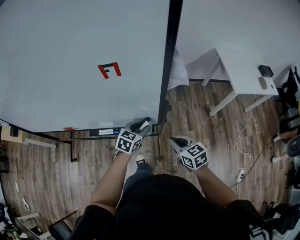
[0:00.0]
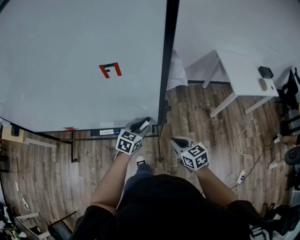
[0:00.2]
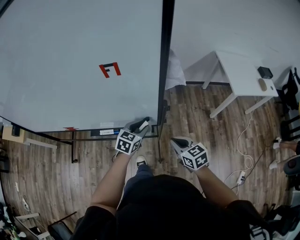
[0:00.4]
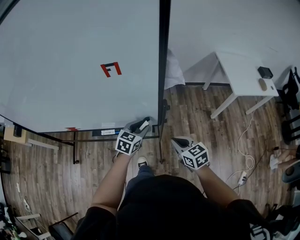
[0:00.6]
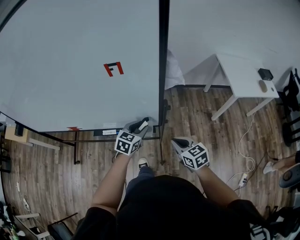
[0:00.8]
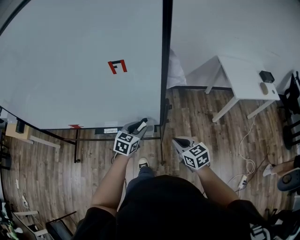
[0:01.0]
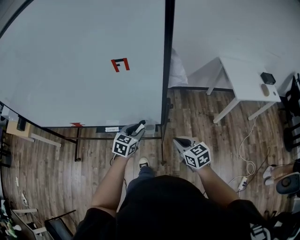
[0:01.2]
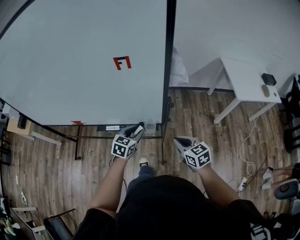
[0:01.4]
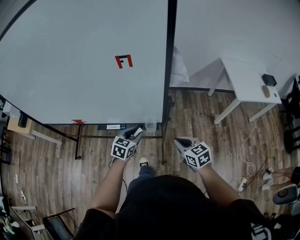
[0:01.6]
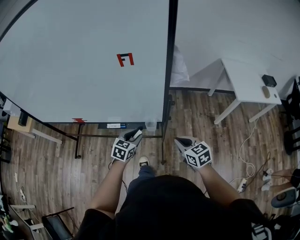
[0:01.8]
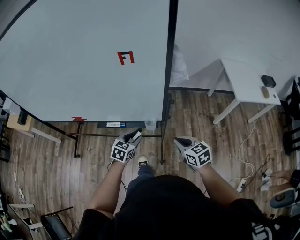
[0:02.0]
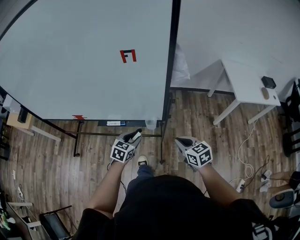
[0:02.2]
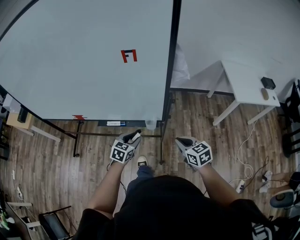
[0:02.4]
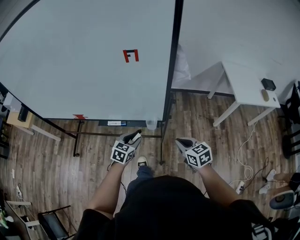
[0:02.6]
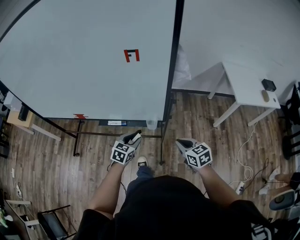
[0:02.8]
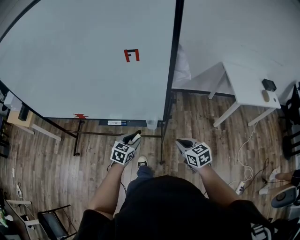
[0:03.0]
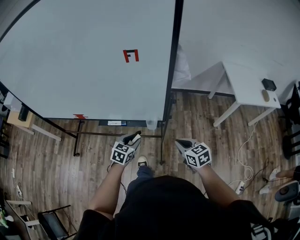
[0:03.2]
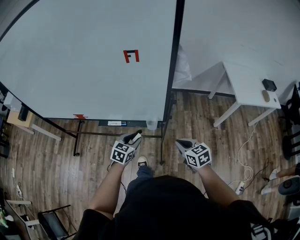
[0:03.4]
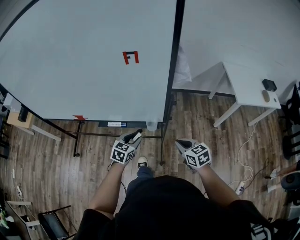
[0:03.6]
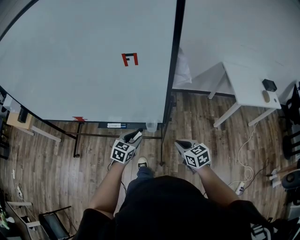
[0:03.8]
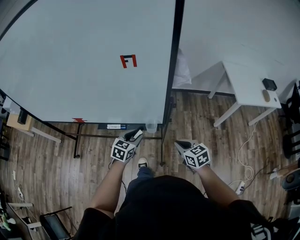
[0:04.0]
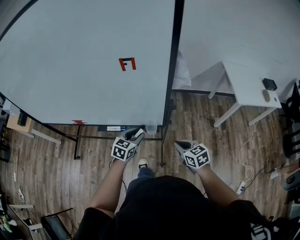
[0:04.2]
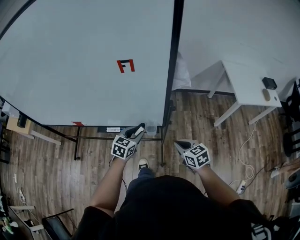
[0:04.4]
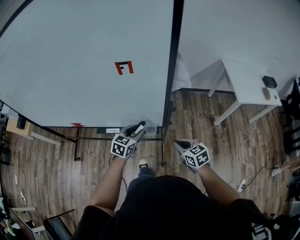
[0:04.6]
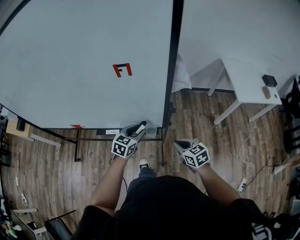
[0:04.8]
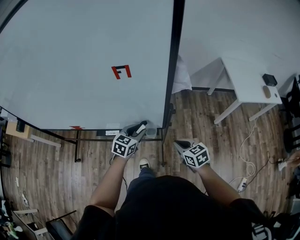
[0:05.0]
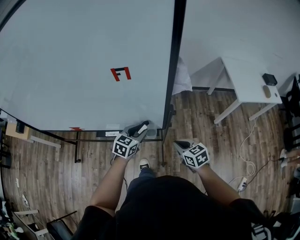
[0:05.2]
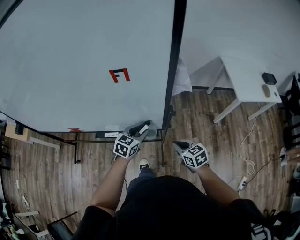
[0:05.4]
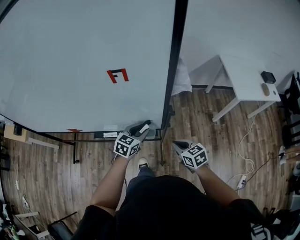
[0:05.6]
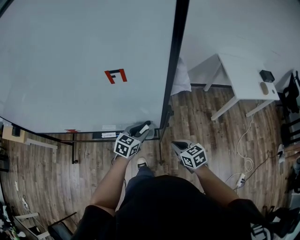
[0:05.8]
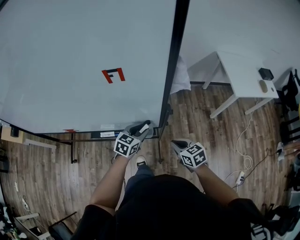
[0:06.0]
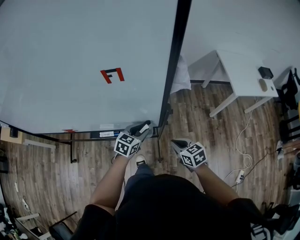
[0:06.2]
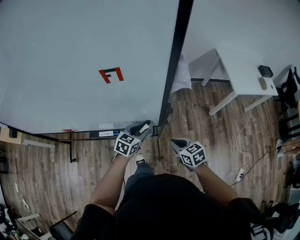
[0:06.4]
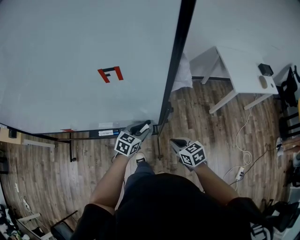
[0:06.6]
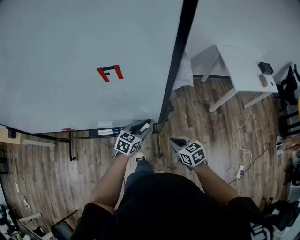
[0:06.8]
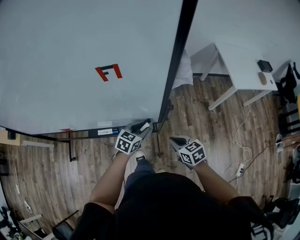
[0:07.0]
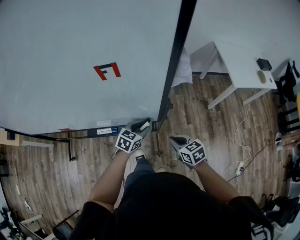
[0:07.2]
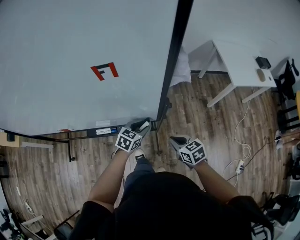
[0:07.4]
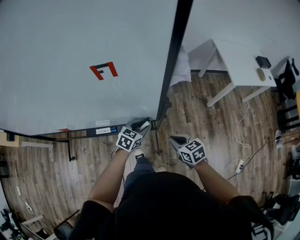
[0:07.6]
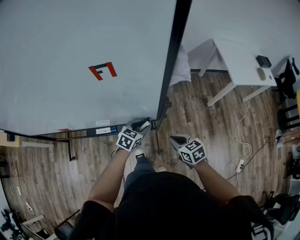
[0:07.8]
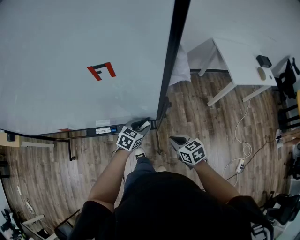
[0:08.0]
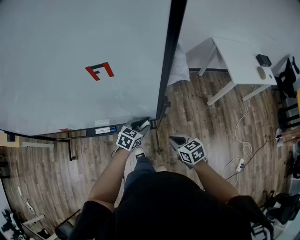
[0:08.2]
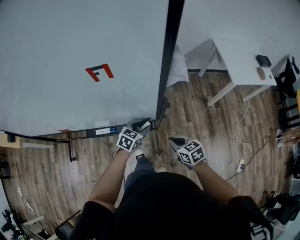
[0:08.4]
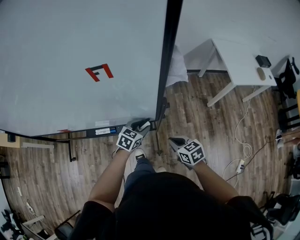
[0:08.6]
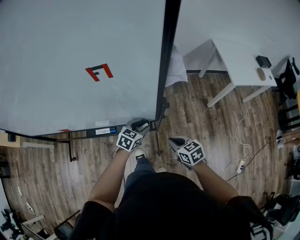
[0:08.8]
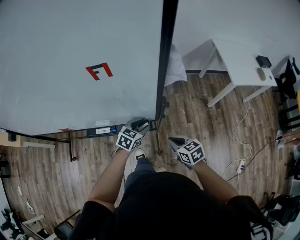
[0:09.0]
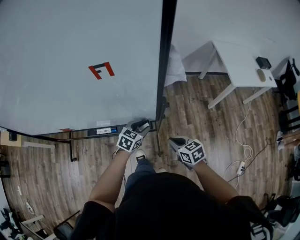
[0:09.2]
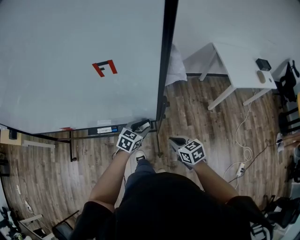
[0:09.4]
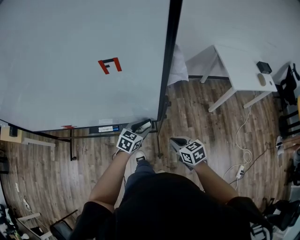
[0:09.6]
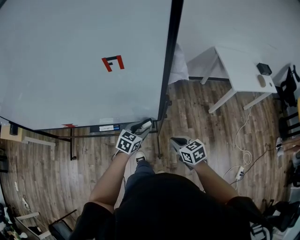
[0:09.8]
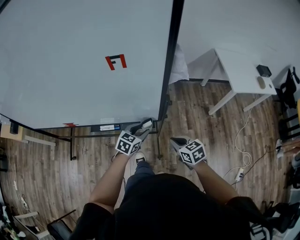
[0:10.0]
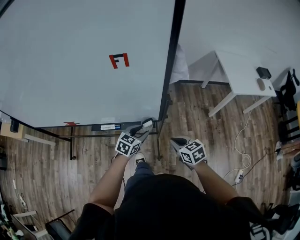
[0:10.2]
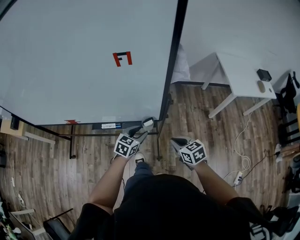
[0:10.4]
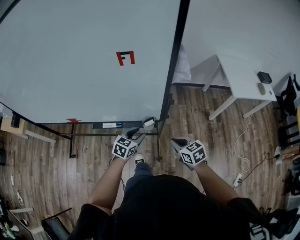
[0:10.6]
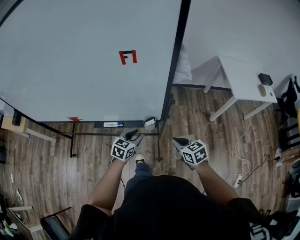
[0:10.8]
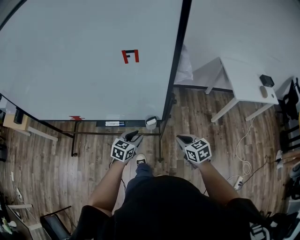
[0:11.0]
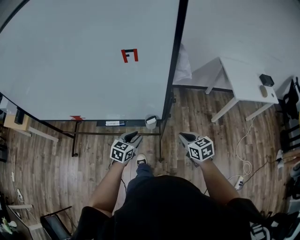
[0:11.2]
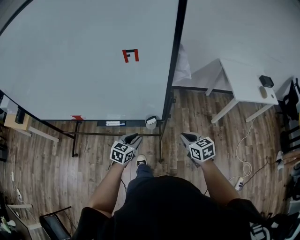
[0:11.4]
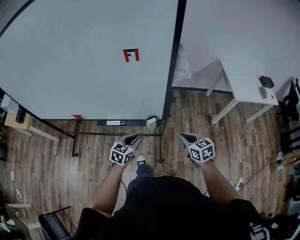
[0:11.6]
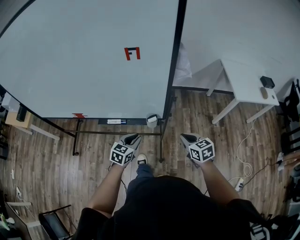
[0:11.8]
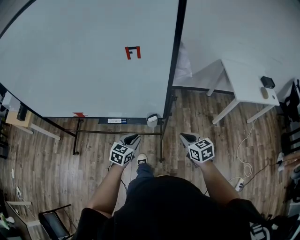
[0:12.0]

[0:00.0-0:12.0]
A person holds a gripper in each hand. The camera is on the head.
0:00.0 to 0:01.6: The left gripper travels backward and to the left by some 10 cm.
0:01.6 to 0:03.0: The left gripper goes approximately 5 cm backward.
0:03.0 to 0:04.4: The left gripper shifts approximately 5 cm forward.
0:04.4 to 0:06.0: The left gripper shifts by roughly 5 cm.
0:06.0 to 0:07.6: The left gripper is displaced downward by roughly 5 cm.
0:07.6 to 0:09.0: Both grippers stay about where they are.
0:09.0 to 0:10.4: The left gripper moves backward, approximately 5 cm.
0:10.4 to 0:12.0: The left gripper shifts some 5 cm backward, and closes its fingers, while the right gripper moves about 5 cm.

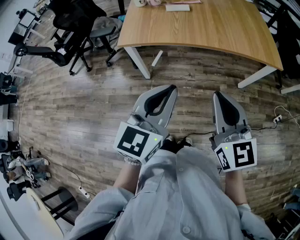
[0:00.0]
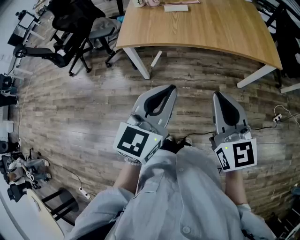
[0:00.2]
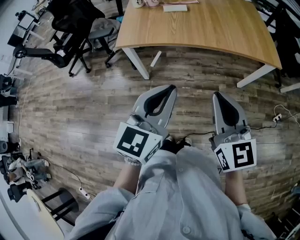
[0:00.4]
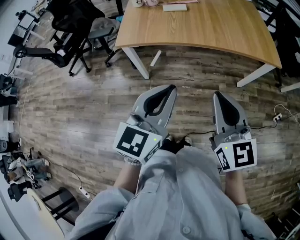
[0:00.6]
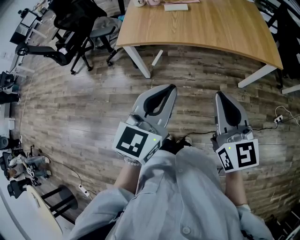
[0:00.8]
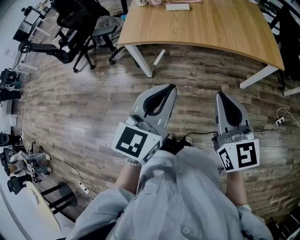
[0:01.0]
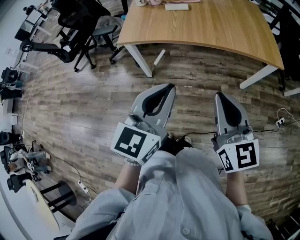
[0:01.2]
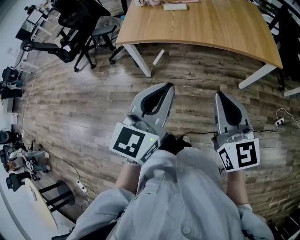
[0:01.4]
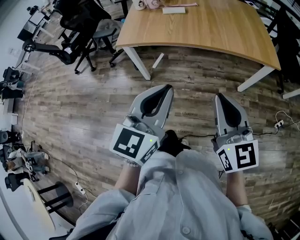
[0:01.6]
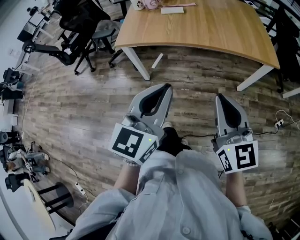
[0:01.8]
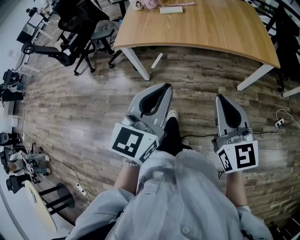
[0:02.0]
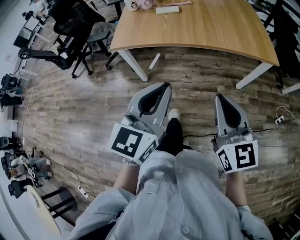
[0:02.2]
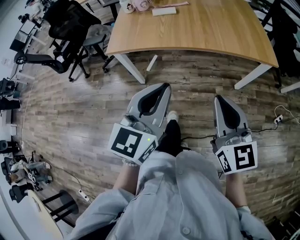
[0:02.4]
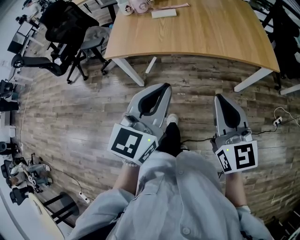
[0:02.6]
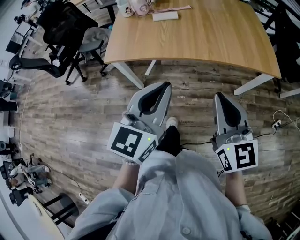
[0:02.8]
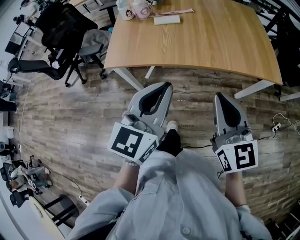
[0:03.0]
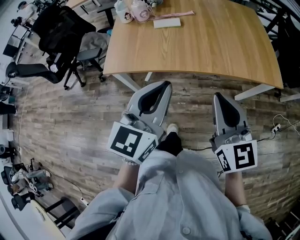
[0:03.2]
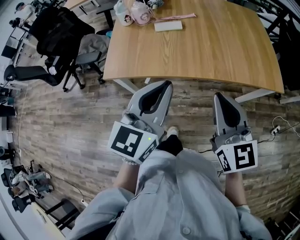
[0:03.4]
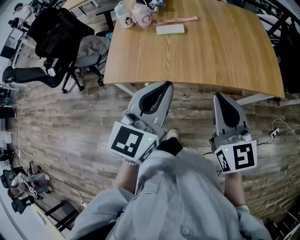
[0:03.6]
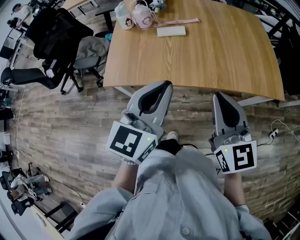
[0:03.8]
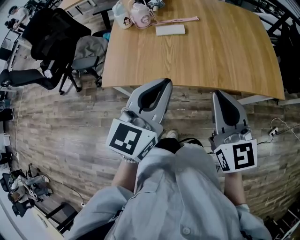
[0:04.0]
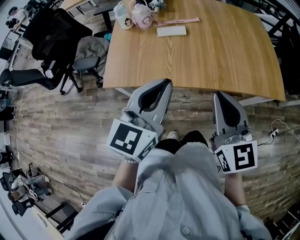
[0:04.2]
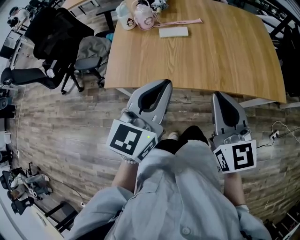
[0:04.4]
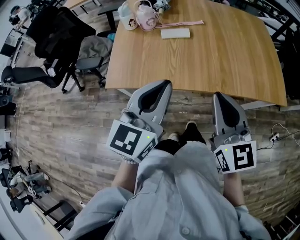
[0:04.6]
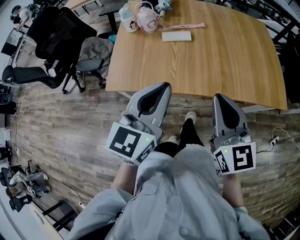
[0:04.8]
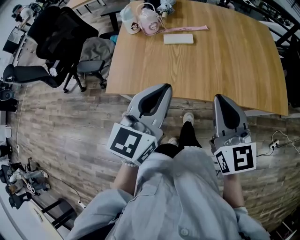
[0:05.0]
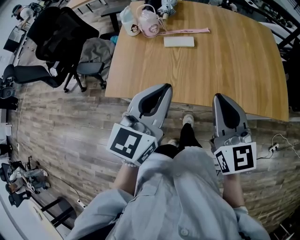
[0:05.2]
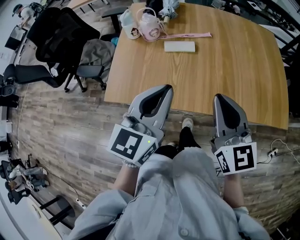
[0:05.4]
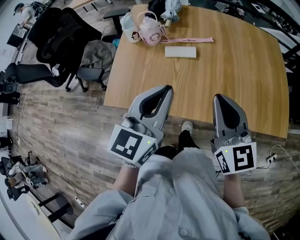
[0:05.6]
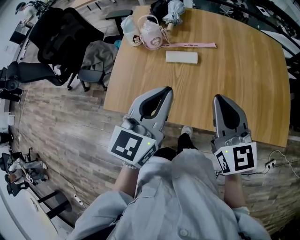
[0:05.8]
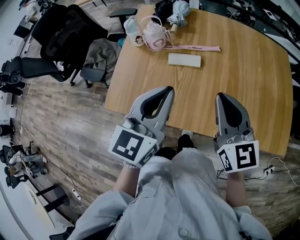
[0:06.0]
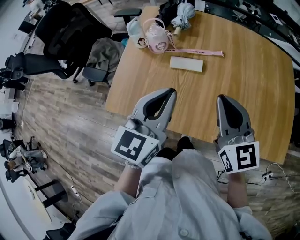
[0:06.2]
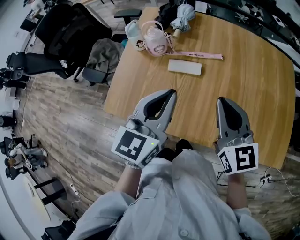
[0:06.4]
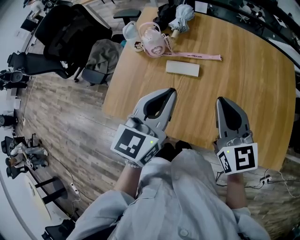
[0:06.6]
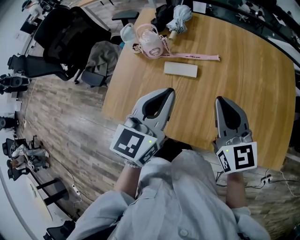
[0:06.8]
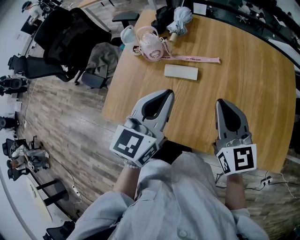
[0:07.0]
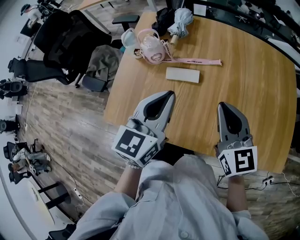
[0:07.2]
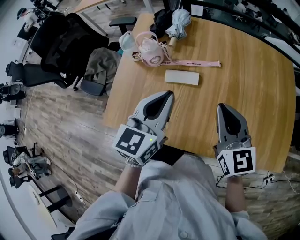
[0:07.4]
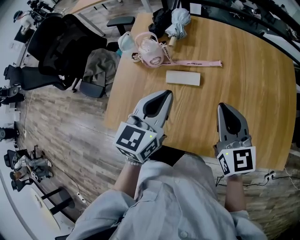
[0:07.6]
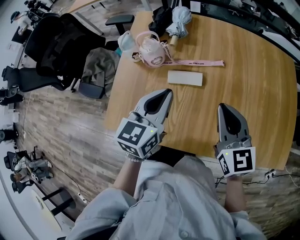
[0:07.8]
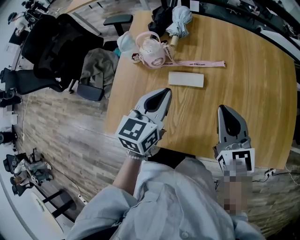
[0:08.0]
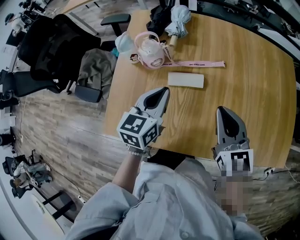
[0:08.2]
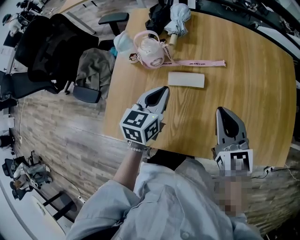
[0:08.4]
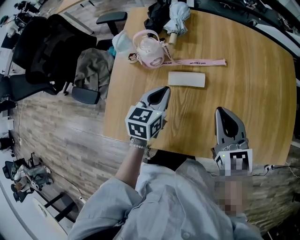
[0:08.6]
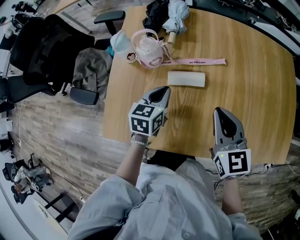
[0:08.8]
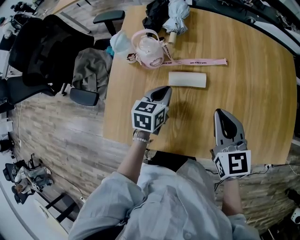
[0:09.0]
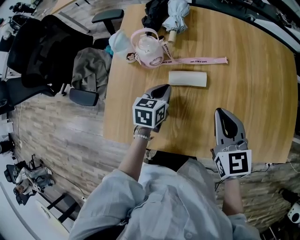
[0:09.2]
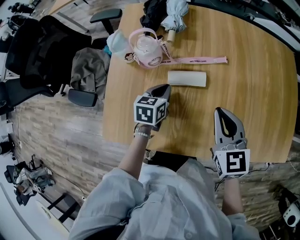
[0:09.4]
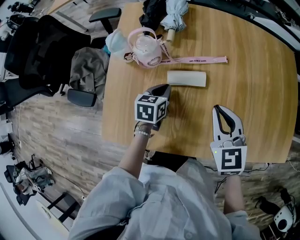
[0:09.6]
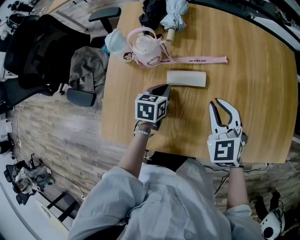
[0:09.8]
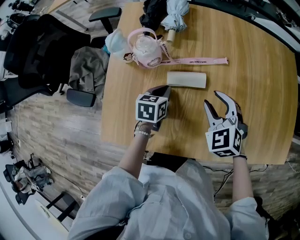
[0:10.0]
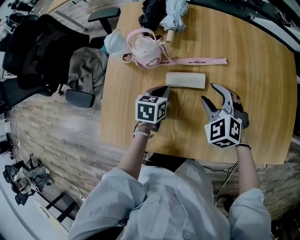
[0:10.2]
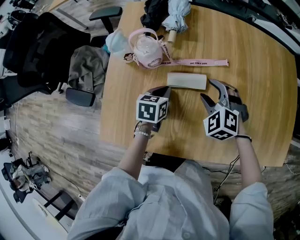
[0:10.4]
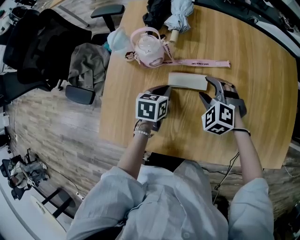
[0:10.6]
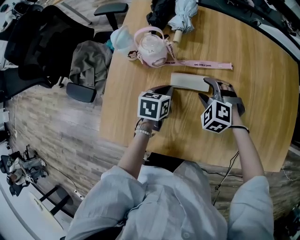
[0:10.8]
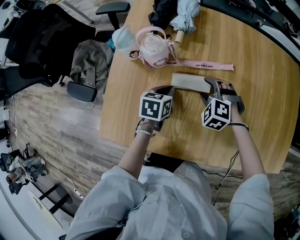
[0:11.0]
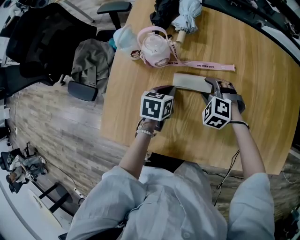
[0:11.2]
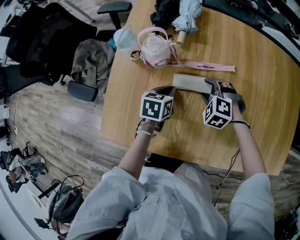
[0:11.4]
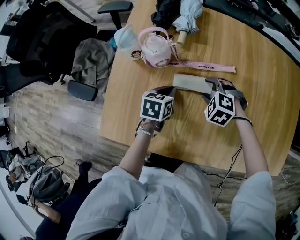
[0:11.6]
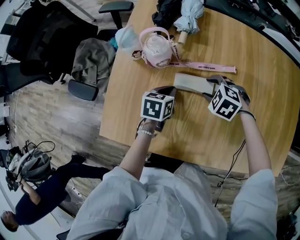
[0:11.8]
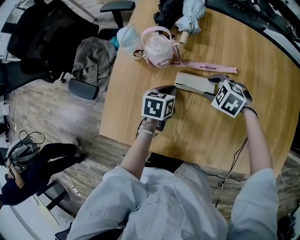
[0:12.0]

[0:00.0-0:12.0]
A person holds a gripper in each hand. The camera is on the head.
0:00.0 to 0:01.6: The two grippers go some 10 cm to the right.
0:01.6 to 0:03.0: Both grippers move forward, approximately 20 cm.
0:03.0 to 0:04.4: Both grippers move forward and to the left, approximately 15 cm.
0:04.4 to 0:06.0: The grippers both shift forward by some 20 cm.
0:06.0 to 0:07.6: Both grippers travel together forward, roughly 10 cm.
0:07.6 to 0:09.0: The left gripper is displaced downward by roughly 20 cm, and turns by some 20 degrees; the right gripper travels downward by roughly 5 cm.
0:09.0 to 0:10.4: The left gripper goes some 5 cm downward; the right gripper is displaced downward and forward by some 15 cm, rotates around the line of its fingers by about 50 degrees, counterclockwise from behind, and opens its fingers.
0:10.4 to 0:12.0: The right gripper heads downward, covering some 5 cm, and changes its angle by about 30 degrees.
